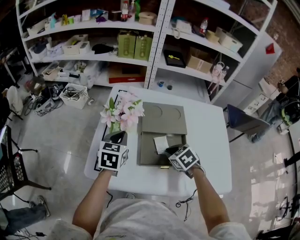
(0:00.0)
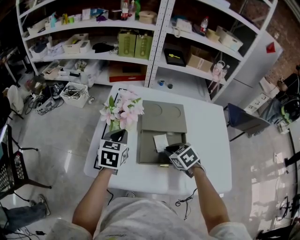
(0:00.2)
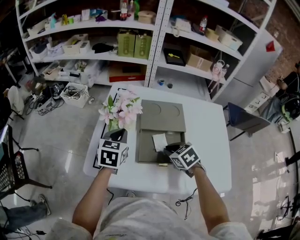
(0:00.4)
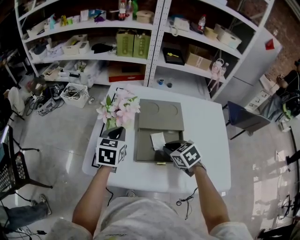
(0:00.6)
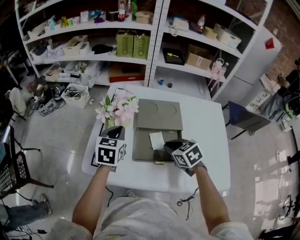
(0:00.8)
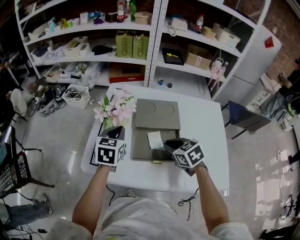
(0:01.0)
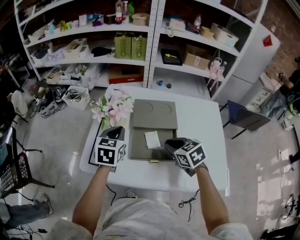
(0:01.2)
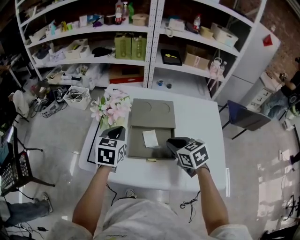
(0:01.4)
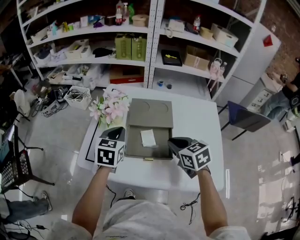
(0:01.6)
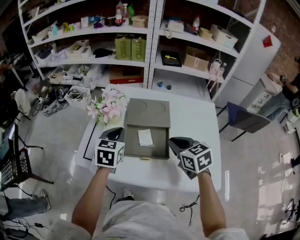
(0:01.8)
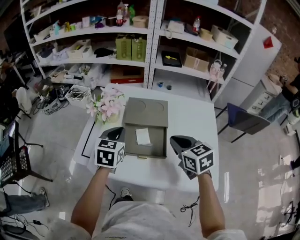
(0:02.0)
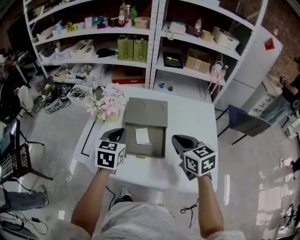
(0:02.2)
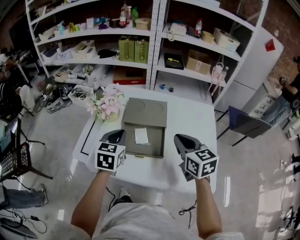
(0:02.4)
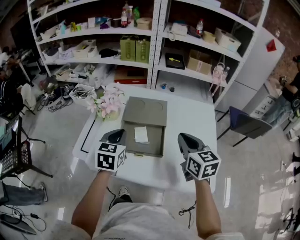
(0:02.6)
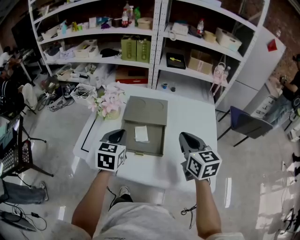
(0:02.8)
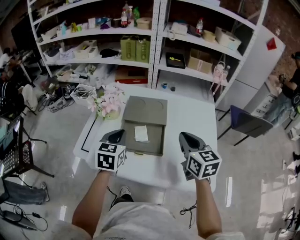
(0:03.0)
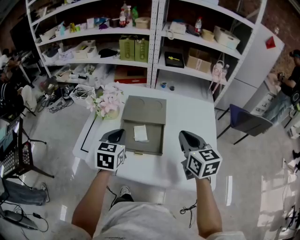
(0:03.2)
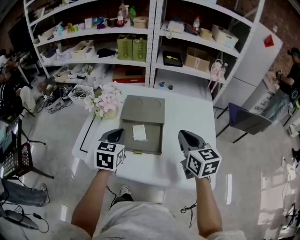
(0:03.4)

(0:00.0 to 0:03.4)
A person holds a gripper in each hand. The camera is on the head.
0:00.0 - 0:01.6: The right gripper goes approximately 15 cm upward and to the right, and swivels approximately 20 degrees, while the left gripper travels to the right and backward by some 10 cm.
0:01.6 - 0:03.4: The left gripper moves backward, roughly 5 cm, while the right gripper moves to the right and upward, about 10 cm, and swivels about 20 degrees.

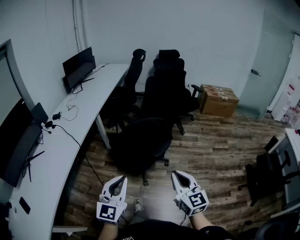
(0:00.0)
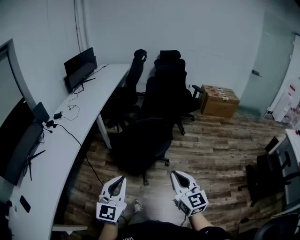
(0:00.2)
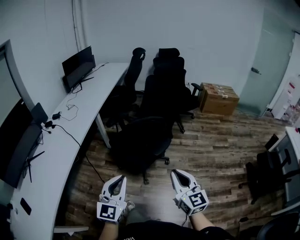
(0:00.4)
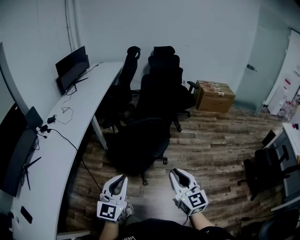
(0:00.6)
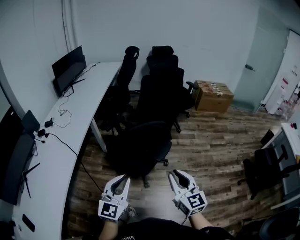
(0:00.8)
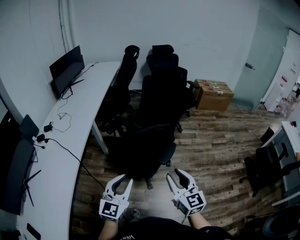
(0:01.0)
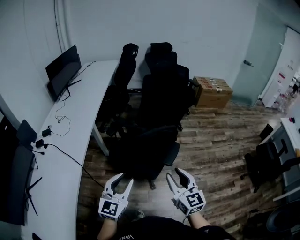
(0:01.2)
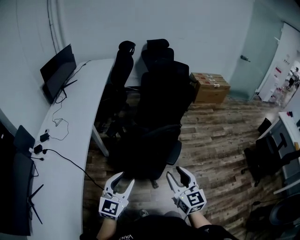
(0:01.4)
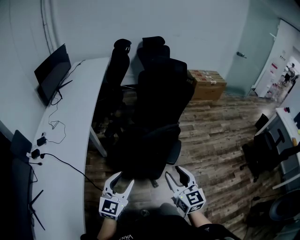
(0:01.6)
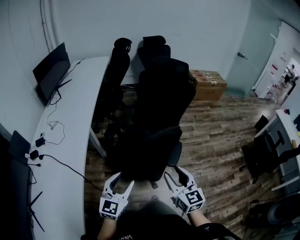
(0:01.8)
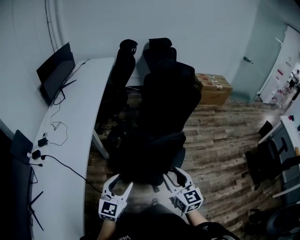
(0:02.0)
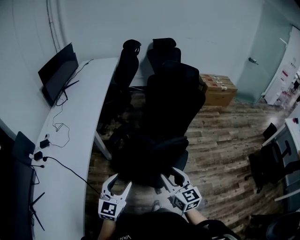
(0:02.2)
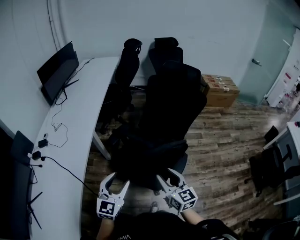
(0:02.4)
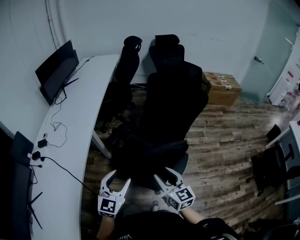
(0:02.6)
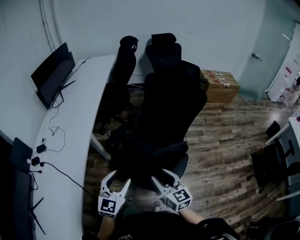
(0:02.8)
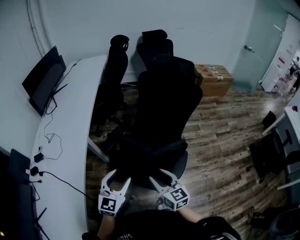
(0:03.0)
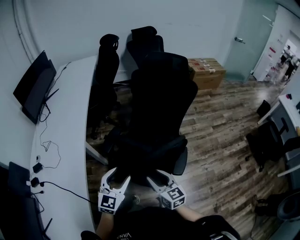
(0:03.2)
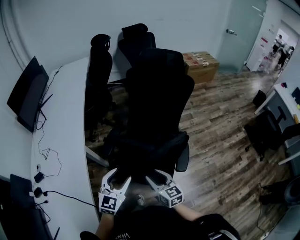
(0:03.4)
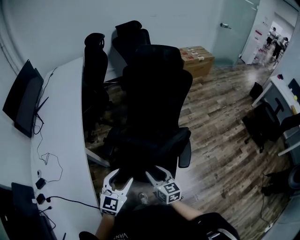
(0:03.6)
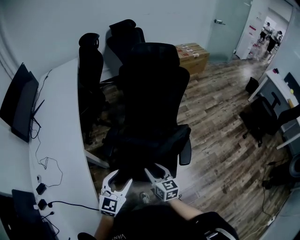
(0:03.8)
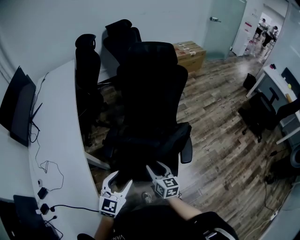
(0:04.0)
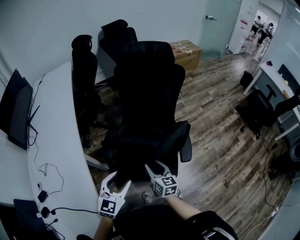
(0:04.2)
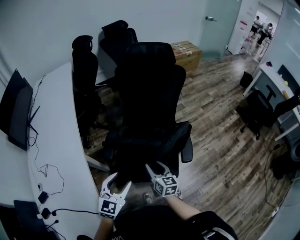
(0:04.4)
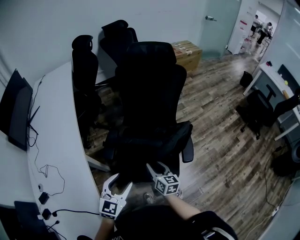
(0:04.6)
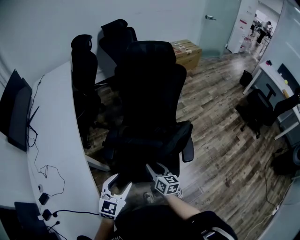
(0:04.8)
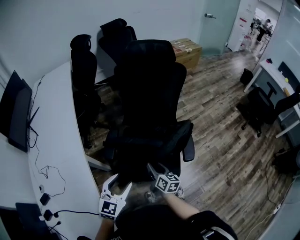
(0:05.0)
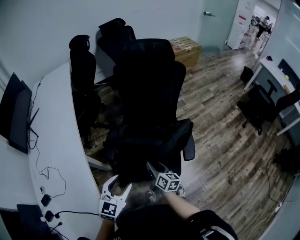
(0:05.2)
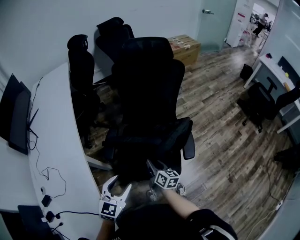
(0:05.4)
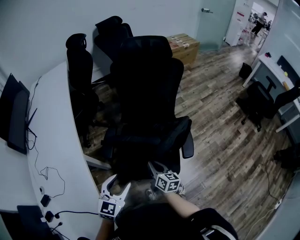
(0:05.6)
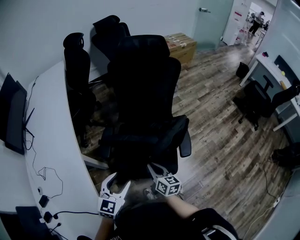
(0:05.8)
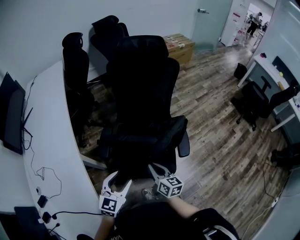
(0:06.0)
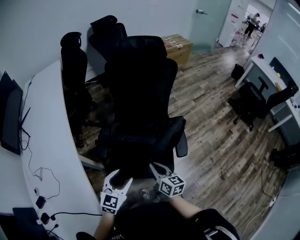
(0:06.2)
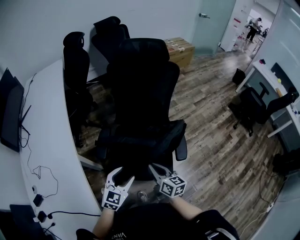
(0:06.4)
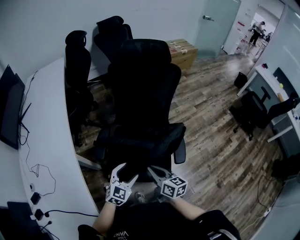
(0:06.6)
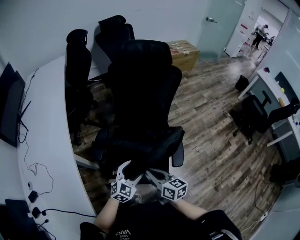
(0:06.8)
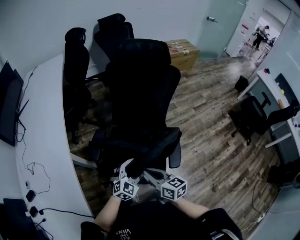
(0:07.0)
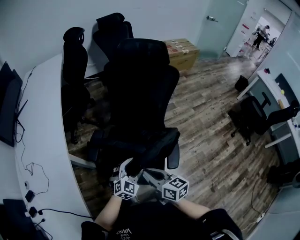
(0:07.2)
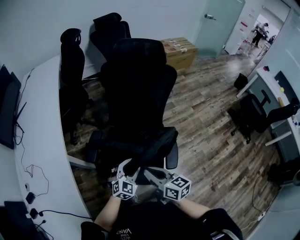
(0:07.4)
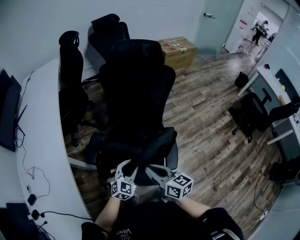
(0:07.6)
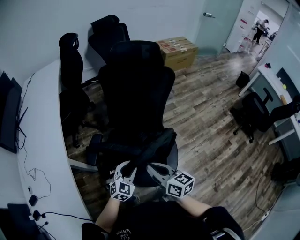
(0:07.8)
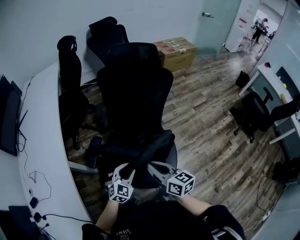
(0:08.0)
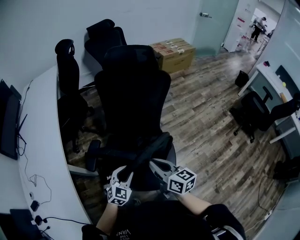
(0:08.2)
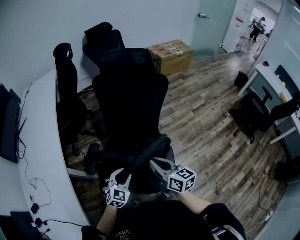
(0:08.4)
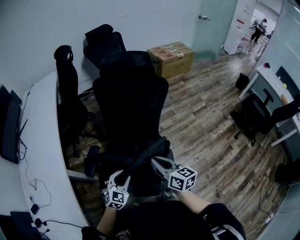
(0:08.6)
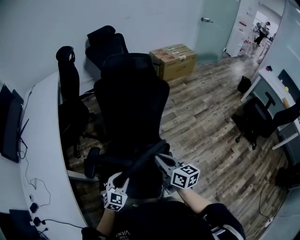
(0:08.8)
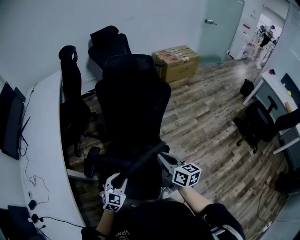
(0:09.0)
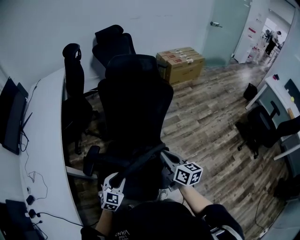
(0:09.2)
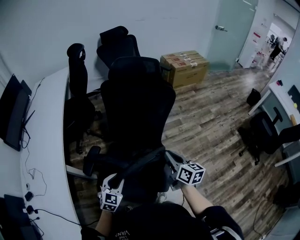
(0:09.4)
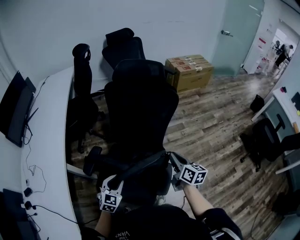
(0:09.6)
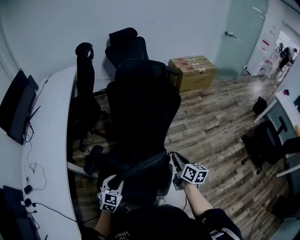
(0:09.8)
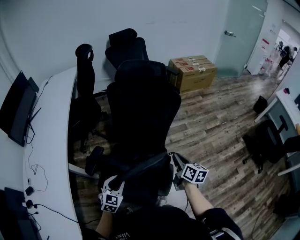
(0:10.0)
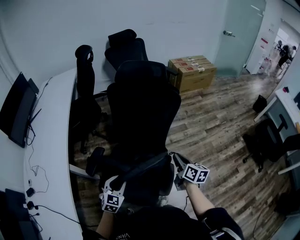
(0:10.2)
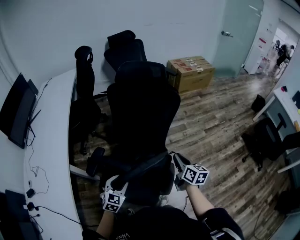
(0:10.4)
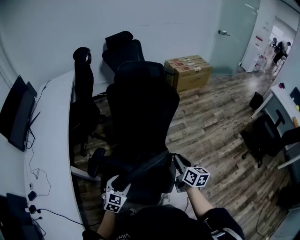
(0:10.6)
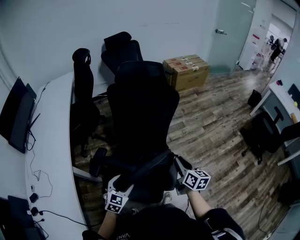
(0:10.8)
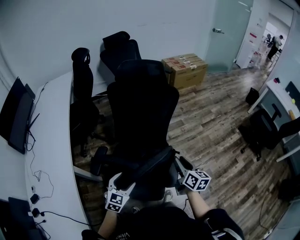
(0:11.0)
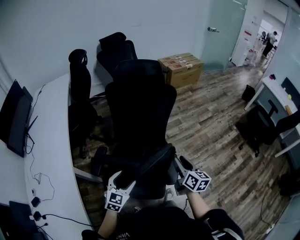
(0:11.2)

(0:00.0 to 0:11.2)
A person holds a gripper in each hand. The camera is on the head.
0:00.0 - 0:01.6: The left gripper goes about 35 cm forward, to the left and downward, swivels roughly 20 degrees, and opens its fingers. The right gripper moves to the left and forward, approximately 30 cm, and opens up.
0:01.6 - 0:03.2: The right gripper moves forward, downward and to the left, some 25 cm. Meanwhile the left gripper shifts about 20 cm forward.
0:03.2 - 0:04.8: The left gripper goes about 10 cm to the left and downward, while the right gripper travels downward, to the left and forward by some 15 cm, and changes its angle by some 30 degrees.
0:04.8 - 0:06.4: The left gripper is displaced downward by some 5 cm; the right gripper ends up some 5 cm from where it was, and closes its fingers.
0:06.4 - 0:08.0: The right gripper goes about 15 cm to the right, upward and forward. The left gripper is displaced to the right and forward by roughly 15 cm.
0:08.0 - 0:09.6: The right gripper travels to the right and forward by about 25 cm.
0:09.6 - 0:11.2: The left gripper ends up some 5 cm from where it was, and opens, while the right gripper travels backward and to the left by some 10 cm, and opens its fingers.

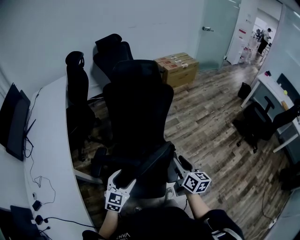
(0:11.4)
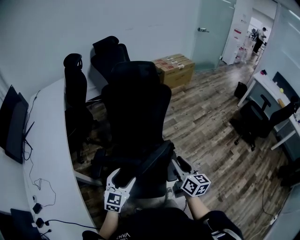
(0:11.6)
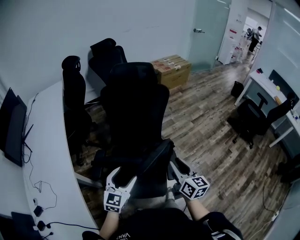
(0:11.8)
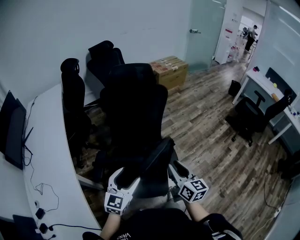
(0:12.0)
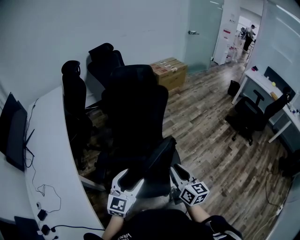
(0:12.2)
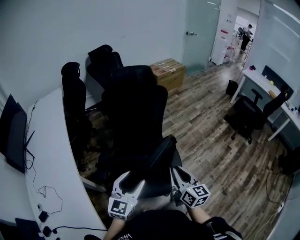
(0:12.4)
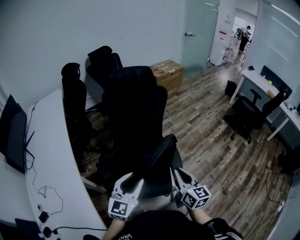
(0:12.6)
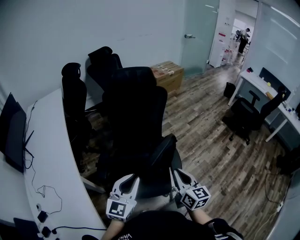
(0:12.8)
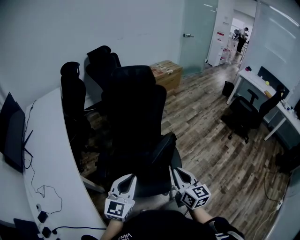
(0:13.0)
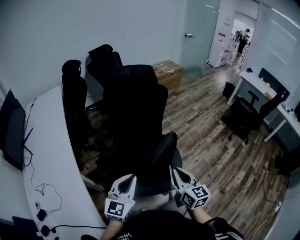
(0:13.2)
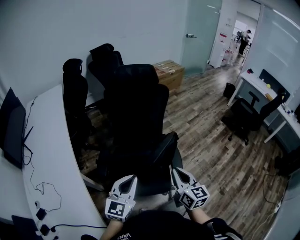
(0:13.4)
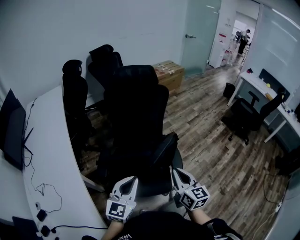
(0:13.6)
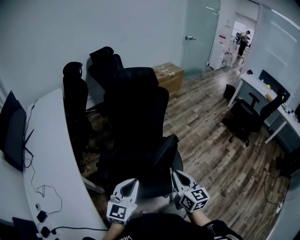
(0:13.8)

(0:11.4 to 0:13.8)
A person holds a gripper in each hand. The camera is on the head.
0:11.4 - 0:12.6: The left gripper heads upward and backward, covering about 15 cm, changes its angle by approximately 20 degrees, and closes its fingers, while the right gripper is displaced backward and to the left by some 20 cm, and closes its fingers.
0:12.6 - 0:13.8: The left gripper closes up.

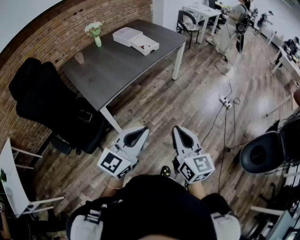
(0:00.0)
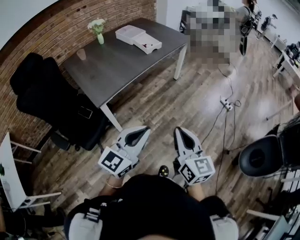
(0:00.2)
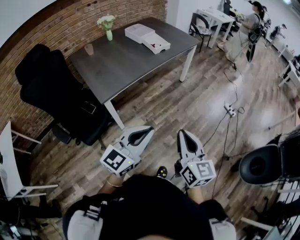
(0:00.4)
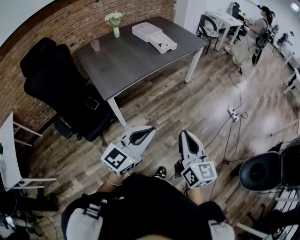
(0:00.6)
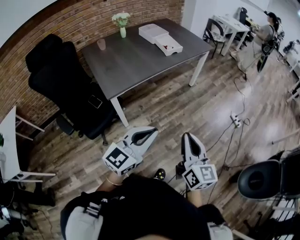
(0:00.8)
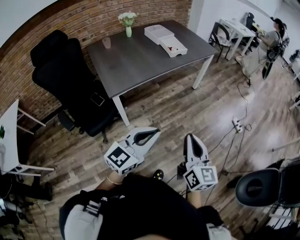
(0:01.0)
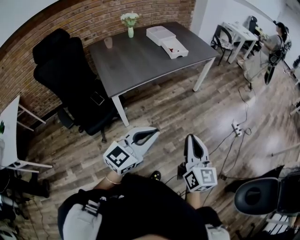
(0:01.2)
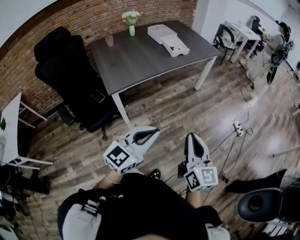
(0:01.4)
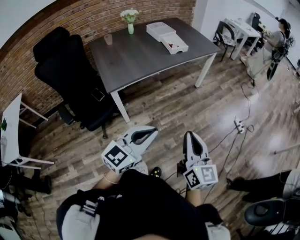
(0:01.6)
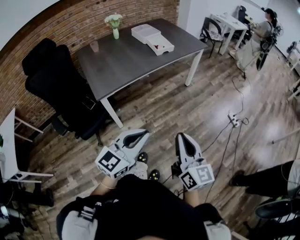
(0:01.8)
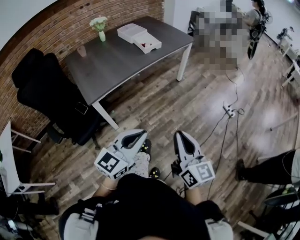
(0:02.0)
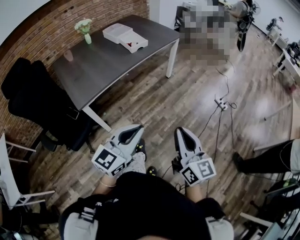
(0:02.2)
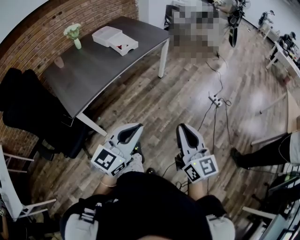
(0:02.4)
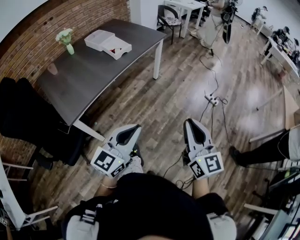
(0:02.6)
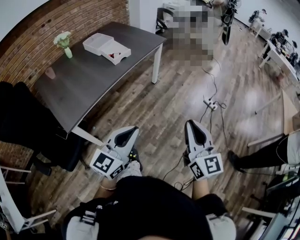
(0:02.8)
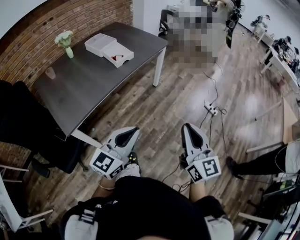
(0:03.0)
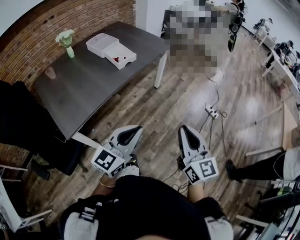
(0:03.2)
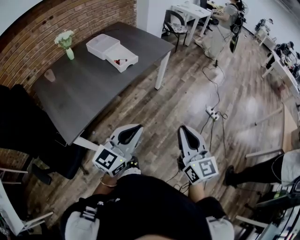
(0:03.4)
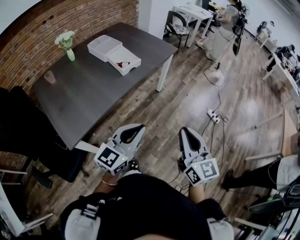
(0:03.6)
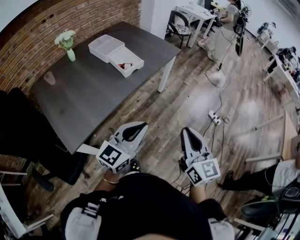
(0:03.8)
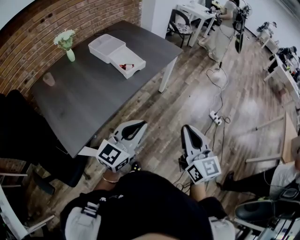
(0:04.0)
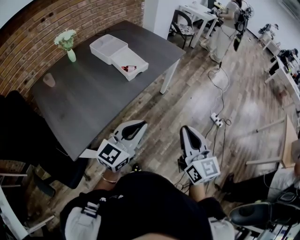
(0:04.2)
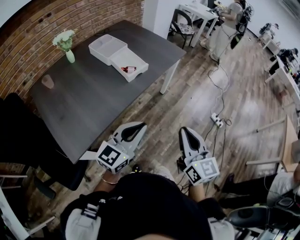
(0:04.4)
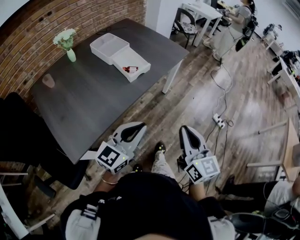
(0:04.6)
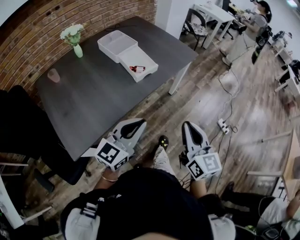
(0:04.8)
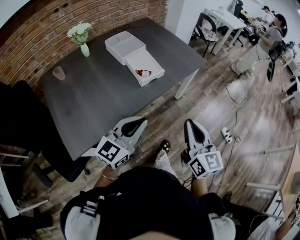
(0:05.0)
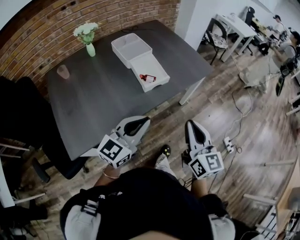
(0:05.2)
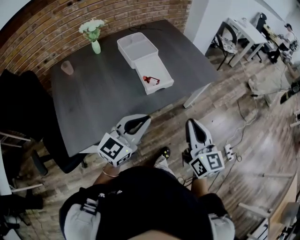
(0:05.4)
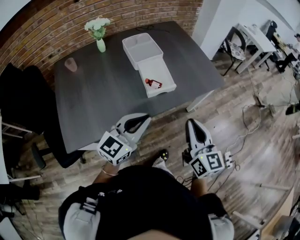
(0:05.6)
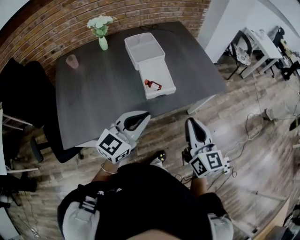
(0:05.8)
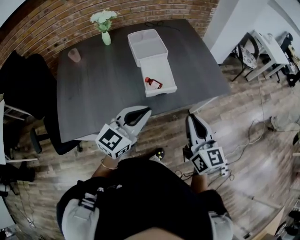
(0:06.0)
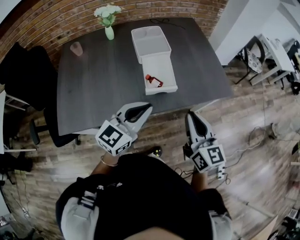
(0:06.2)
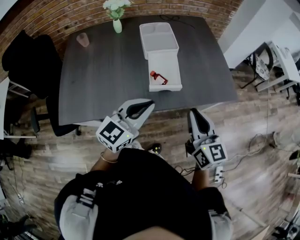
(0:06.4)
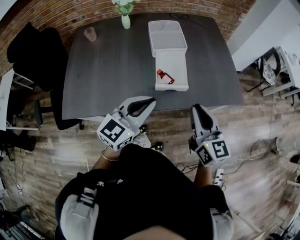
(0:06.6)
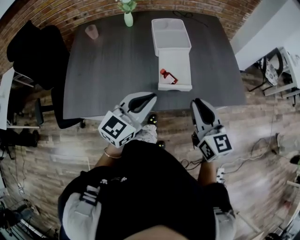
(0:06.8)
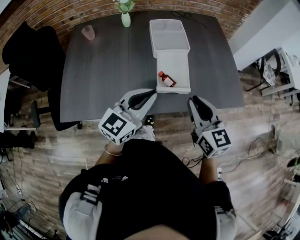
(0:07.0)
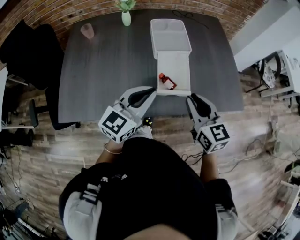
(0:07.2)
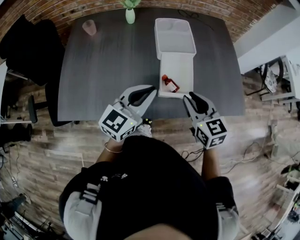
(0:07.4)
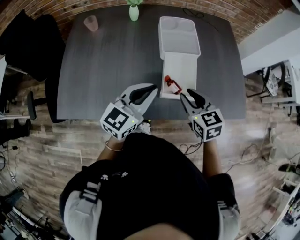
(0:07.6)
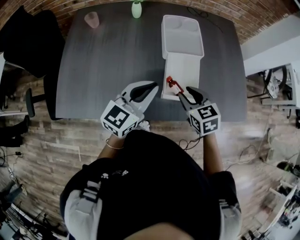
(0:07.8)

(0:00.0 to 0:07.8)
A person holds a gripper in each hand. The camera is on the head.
0:00.0 - 0:01.6: The two grippers go some 10 cm to the right.
0:01.6 - 0:03.2: The two grippers go some 20 cm forward.
0:03.2 - 0:04.6: The grippers both shift forward and to the left by some 20 cm.
0:04.6 - 0:06.2: The left gripper moves roughly 25 cm, and turns by approximately 30 degrees. The right gripper shifts by approximately 35 cm, and changes its angle by approximately 30 degrees.
0:06.2 - 0:07.8: The left gripper travels forward and to the left by approximately 15 cm. Meanwhile the right gripper travels forward, downward and to the left by about 30 cm, tilts its fingers some 40 degrees downward, and opens its fingers.
